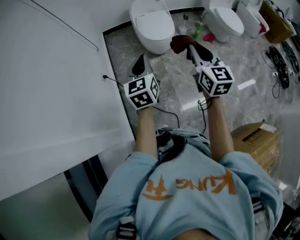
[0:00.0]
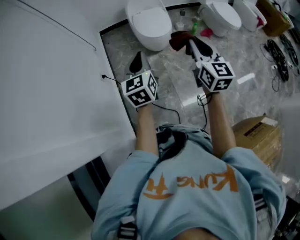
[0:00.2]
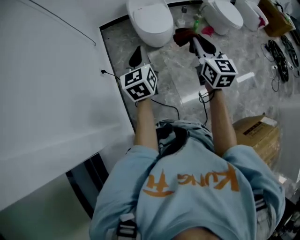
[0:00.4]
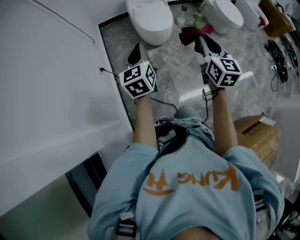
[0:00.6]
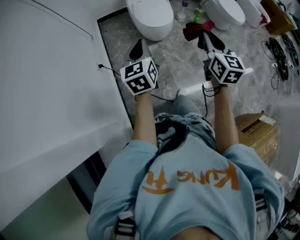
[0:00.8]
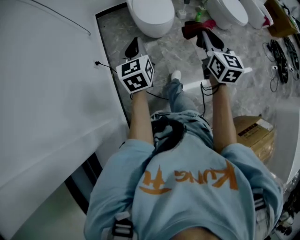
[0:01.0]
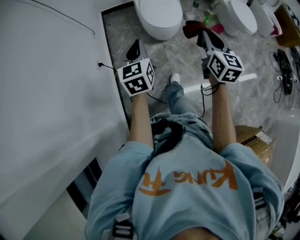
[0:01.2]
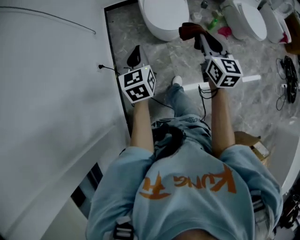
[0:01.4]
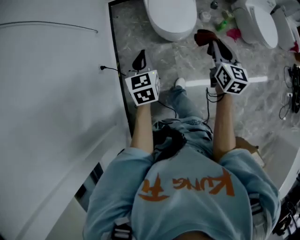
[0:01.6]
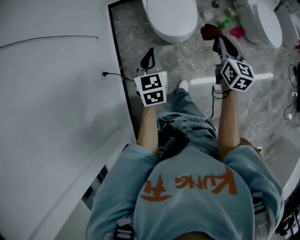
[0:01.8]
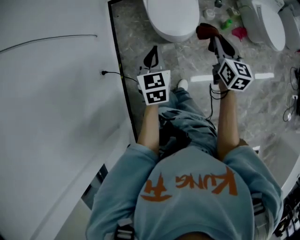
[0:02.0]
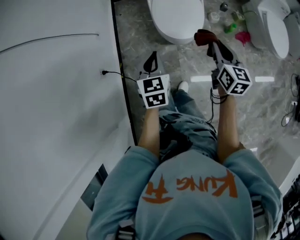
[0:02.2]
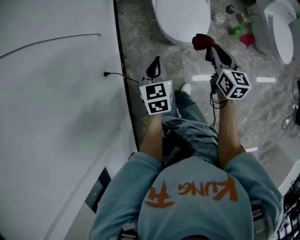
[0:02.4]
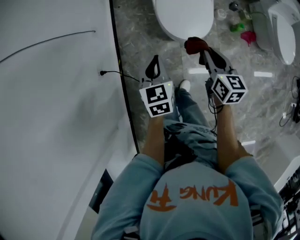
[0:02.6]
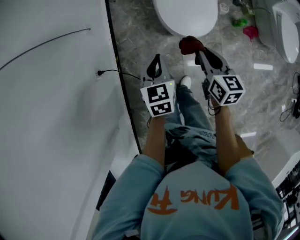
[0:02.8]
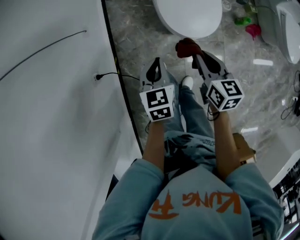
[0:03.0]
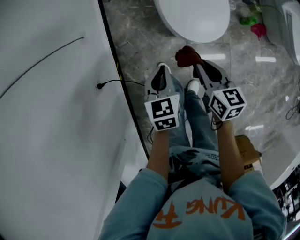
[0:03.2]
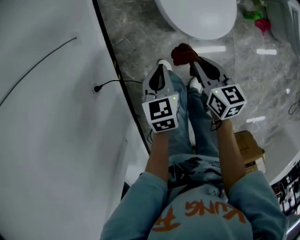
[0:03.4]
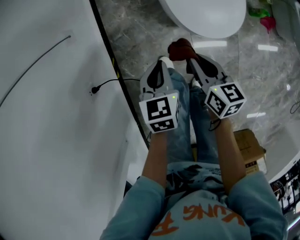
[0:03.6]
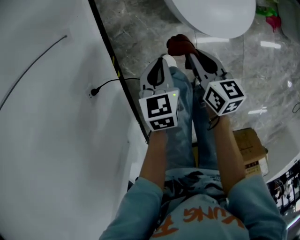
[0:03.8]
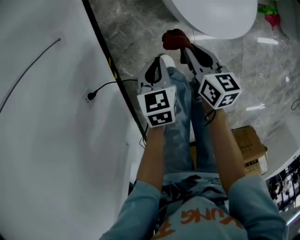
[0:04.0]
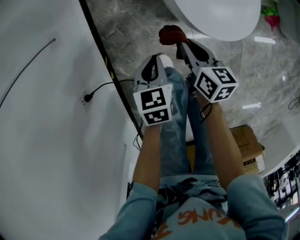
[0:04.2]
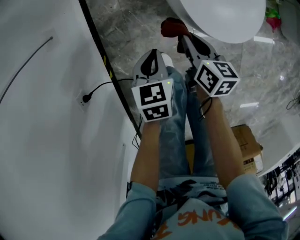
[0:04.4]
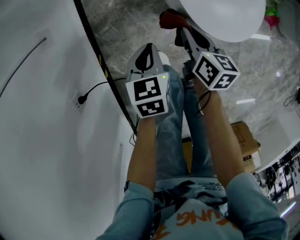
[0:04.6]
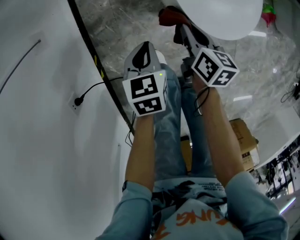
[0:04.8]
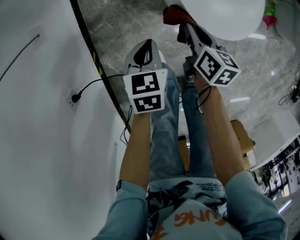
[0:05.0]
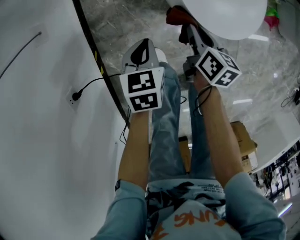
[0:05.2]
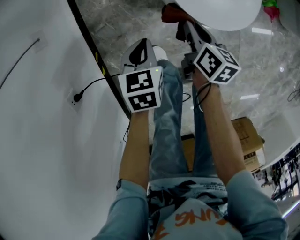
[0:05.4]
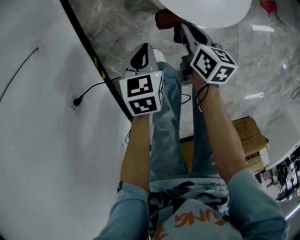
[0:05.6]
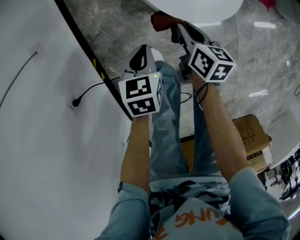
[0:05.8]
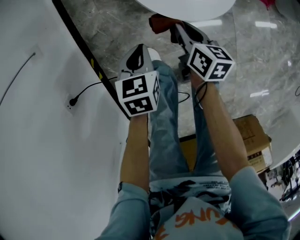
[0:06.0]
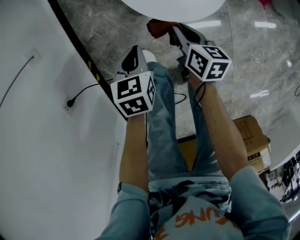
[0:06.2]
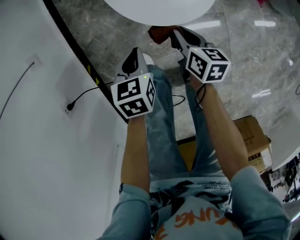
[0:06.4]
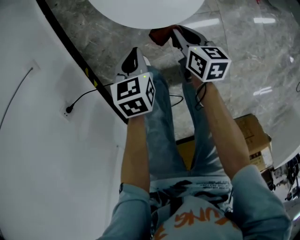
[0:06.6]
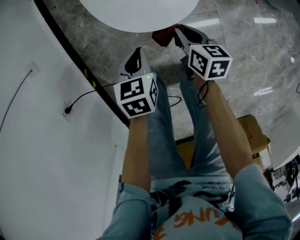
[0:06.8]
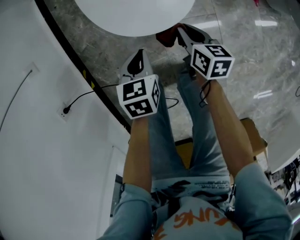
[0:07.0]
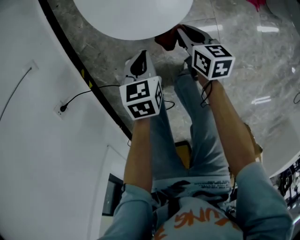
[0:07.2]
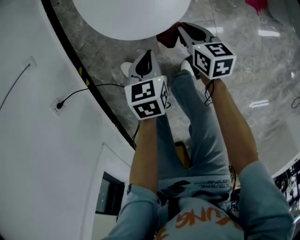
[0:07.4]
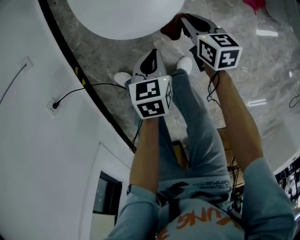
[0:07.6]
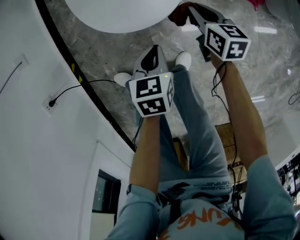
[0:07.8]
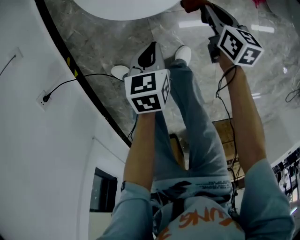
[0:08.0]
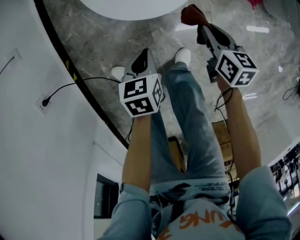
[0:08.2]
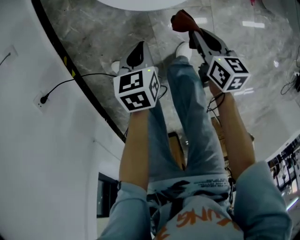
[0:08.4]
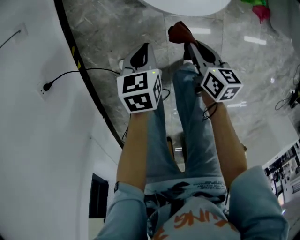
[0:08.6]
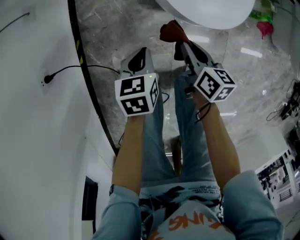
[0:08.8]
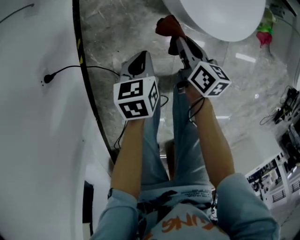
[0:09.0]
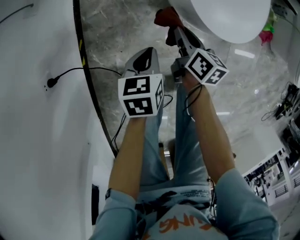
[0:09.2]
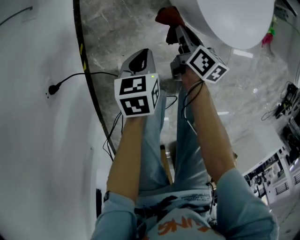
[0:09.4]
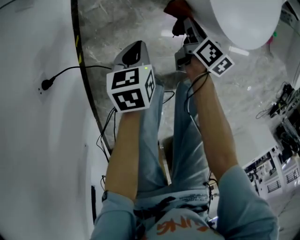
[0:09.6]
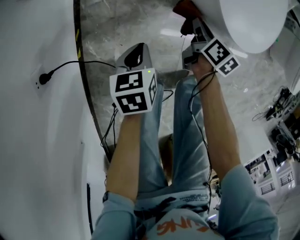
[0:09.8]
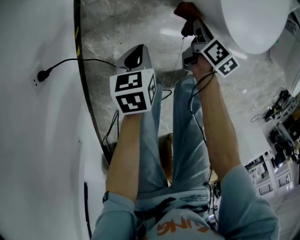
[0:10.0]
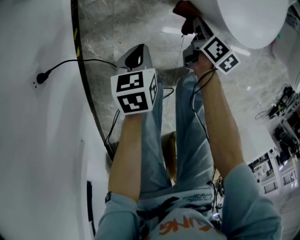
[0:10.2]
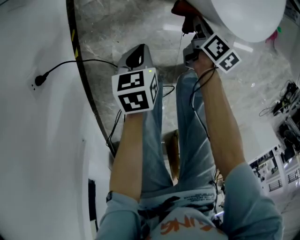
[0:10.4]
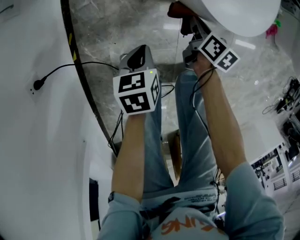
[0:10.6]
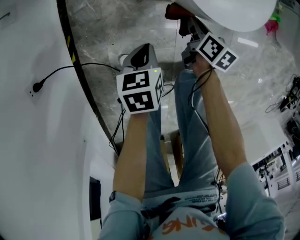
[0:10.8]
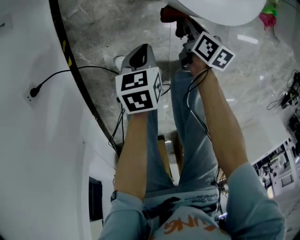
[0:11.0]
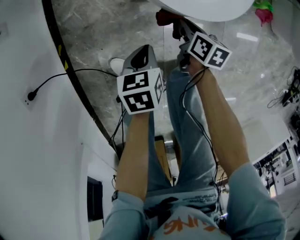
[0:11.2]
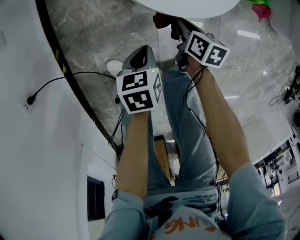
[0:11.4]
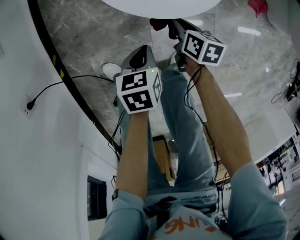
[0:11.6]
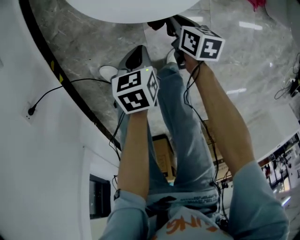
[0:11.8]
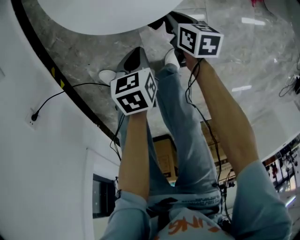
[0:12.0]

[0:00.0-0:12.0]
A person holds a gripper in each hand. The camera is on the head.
0:00.0 to 0:01.6: Both grippers move forward and downward, some 30 cm. The left gripper turns by some 20 degrees.
0:01.6 to 0:03.0: The right gripper moves downward, forward and to the left, some 30 cm, and changes its angle by roughly 30 degrees; the left gripper is displaced downward and forward by some 25 cm.
0:03.0 to 0:04.4: The grippers both shift downward by some 25 cm.
0:04.4 to 0:06.0: Both grippers travel together to the right, about 10 cm.
0:06.0 to 0:07.6: Both grippers travel together to the right, roughly 20 cm. The right gripper turns by roughly 20 degrees.
0:07.6 to 0:09.0: The two grippers go about 25 cm to the left.
0:09.0 to 0:10.4: Both grippers travel together downward, some 10 cm.
0:10.4 to 0:12.0: Both grippers travel together to the right, some 25 cm.

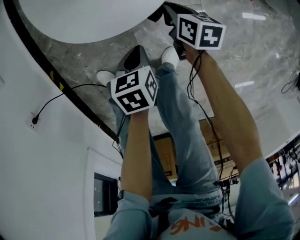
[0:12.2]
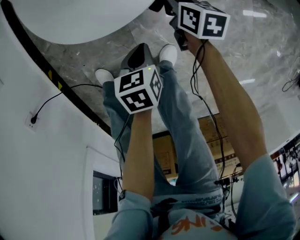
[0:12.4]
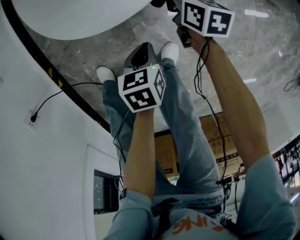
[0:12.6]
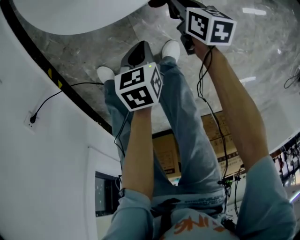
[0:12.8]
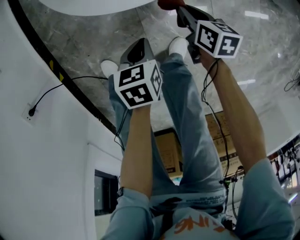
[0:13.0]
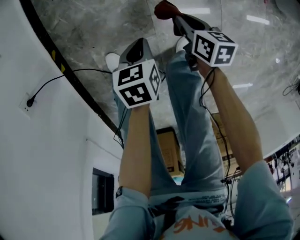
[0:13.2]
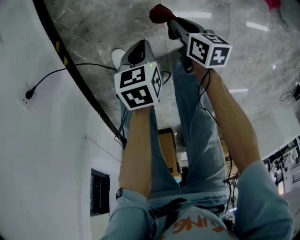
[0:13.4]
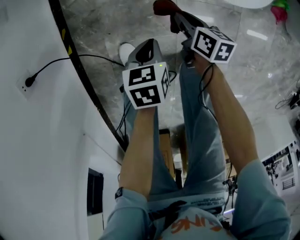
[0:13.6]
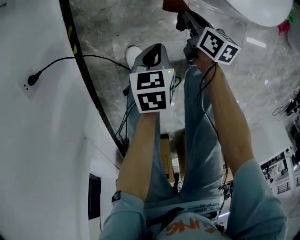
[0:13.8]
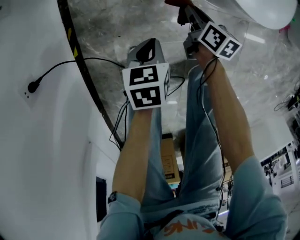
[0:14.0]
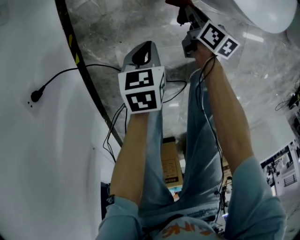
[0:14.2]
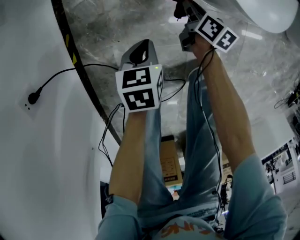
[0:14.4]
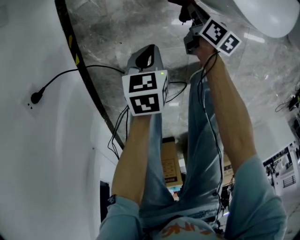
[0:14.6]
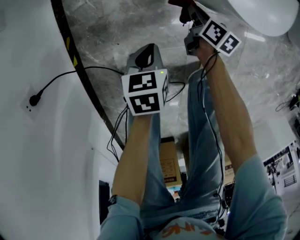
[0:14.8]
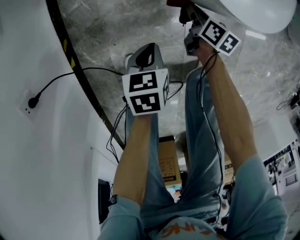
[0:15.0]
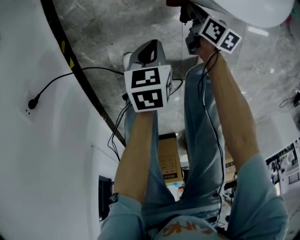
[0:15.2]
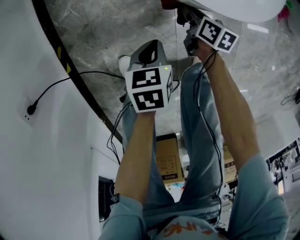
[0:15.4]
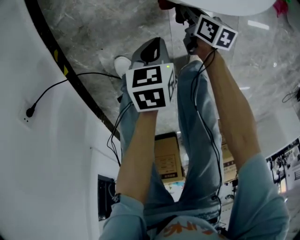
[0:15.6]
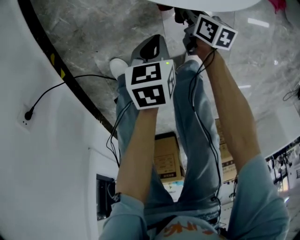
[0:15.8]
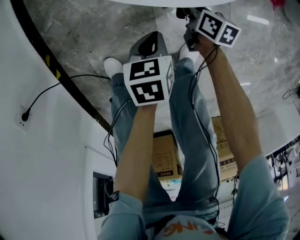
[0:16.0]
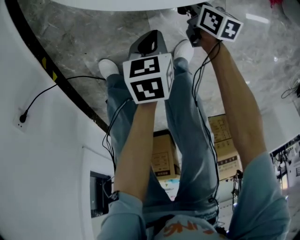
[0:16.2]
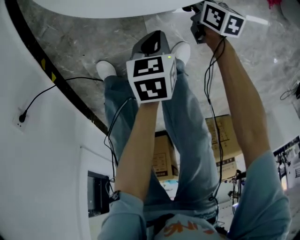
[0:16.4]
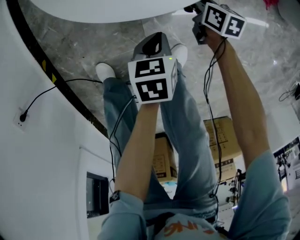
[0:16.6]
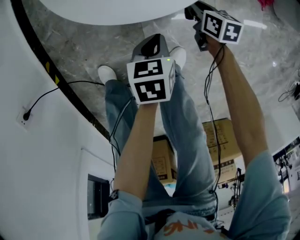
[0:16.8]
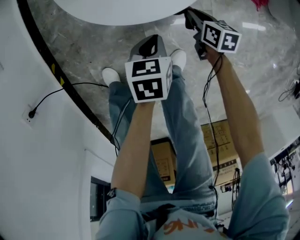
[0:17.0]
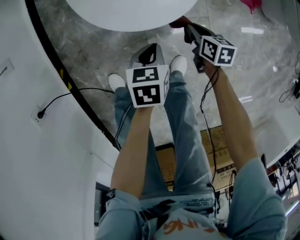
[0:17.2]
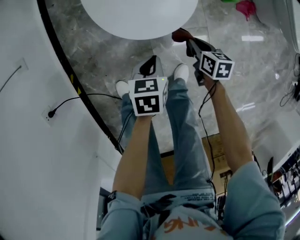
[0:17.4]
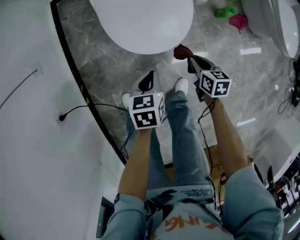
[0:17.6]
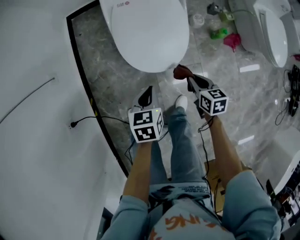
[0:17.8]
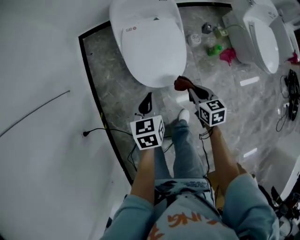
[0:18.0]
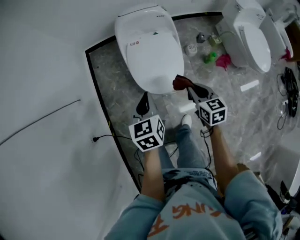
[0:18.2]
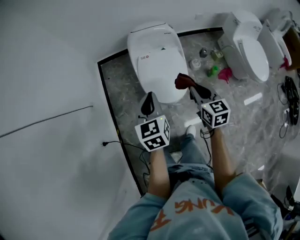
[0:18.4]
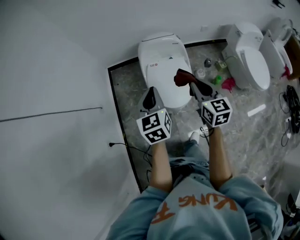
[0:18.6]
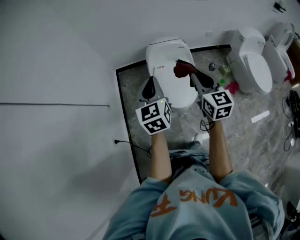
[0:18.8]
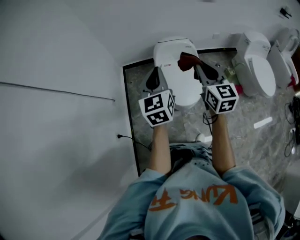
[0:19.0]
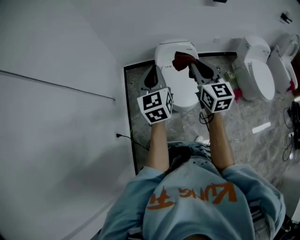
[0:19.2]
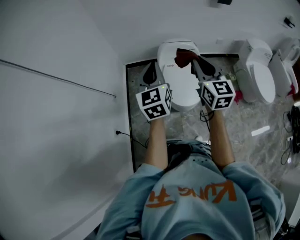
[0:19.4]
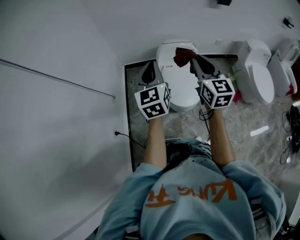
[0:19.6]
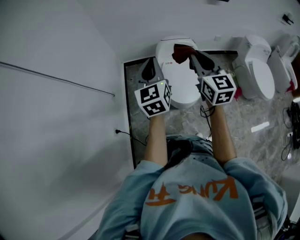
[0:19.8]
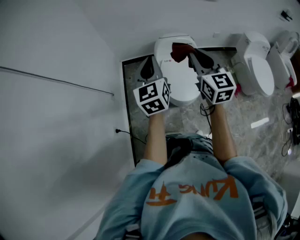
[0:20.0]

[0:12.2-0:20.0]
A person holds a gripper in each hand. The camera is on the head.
0:12.2 to 0:13.8: Both grippers move to the left, some 25 cm.
0:13.8 to 0:15.4: The left gripper goes roughly 10 cm to the right and forward. The right gripper moves to the right and downward, approximately 10 cm.
0:15.4 to 0:16.8: Both grippers move to the right, some 15 cm.
0:16.8 to 0:18.4: The grippers both shift upward by approximately 60 cm. The left gripper angles its fingers upward, by some 30 degrees. Meanwhile the right gripper swivels about 30 degrees.
0:18.4 to 0:20.0: Both grippers travel together upward and to the left, some 25 cm. The left gripper swivels roughly 20 degrees. The right gripper turns by approximately 30 degrees.

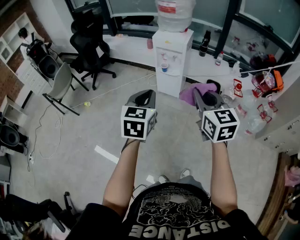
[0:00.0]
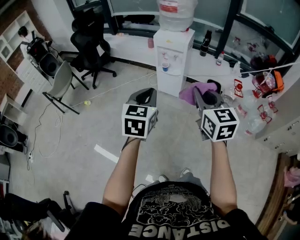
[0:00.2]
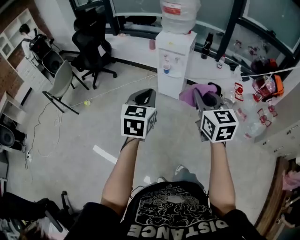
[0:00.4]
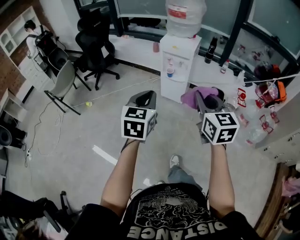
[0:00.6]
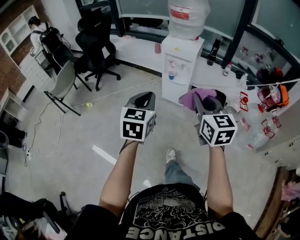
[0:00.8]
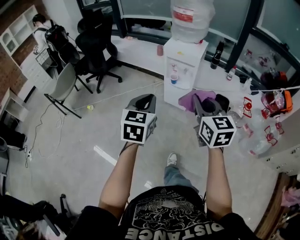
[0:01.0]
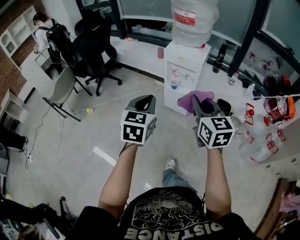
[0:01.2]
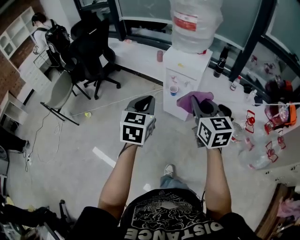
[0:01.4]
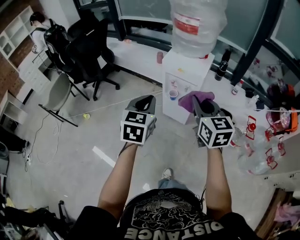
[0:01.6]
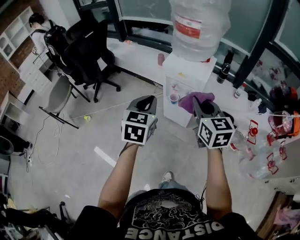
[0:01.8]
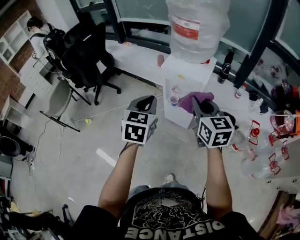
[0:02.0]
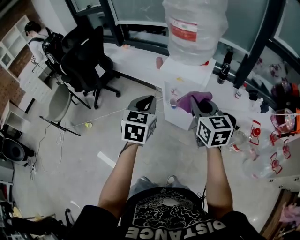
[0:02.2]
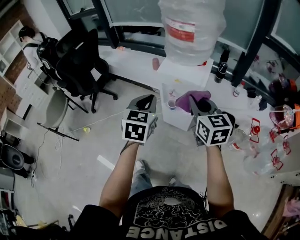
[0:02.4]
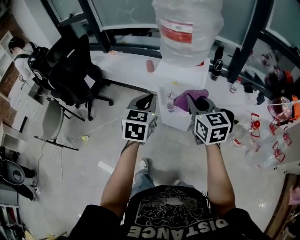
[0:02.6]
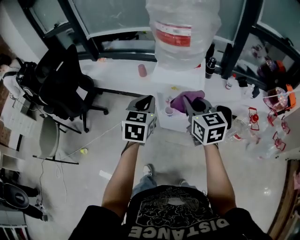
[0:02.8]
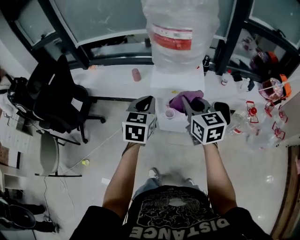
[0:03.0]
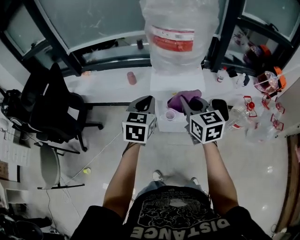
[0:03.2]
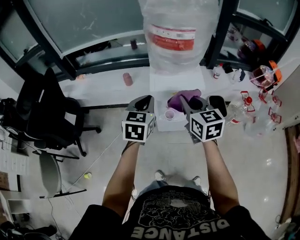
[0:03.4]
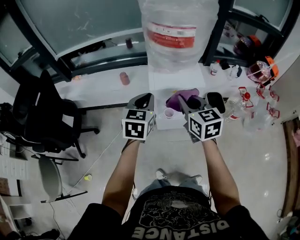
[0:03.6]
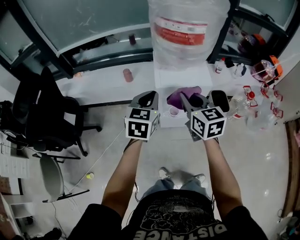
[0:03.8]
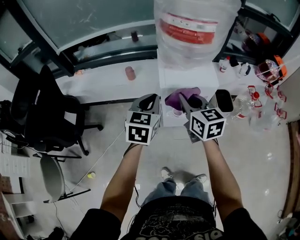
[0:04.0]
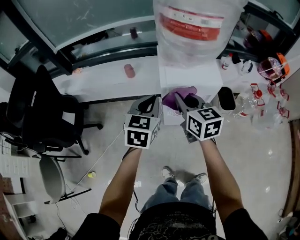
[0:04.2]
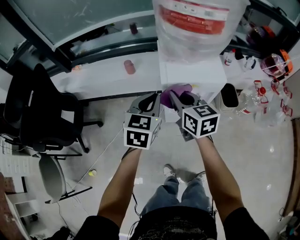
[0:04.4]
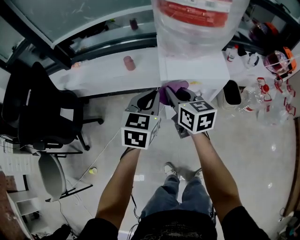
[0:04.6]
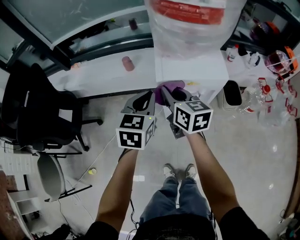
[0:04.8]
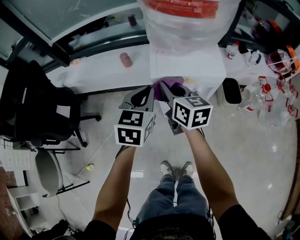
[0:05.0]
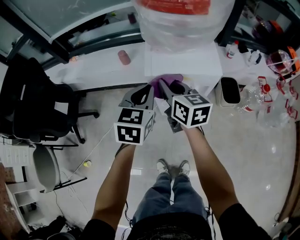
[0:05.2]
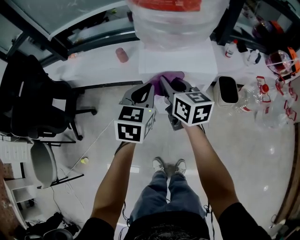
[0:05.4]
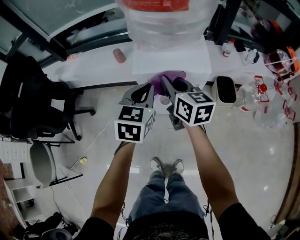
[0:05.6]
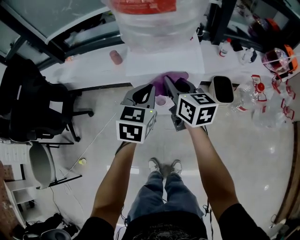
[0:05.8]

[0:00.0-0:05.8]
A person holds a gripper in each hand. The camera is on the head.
0:00.0 to 0:01.4: The two grippers go some 25 cm forward.
0:01.4 to 0:02.8: The grippers both shift forward by roughly 25 cm.
0:02.8 to 0:04.4: The right gripper is displaced to the left, forward and downward by roughly 20 cm. The left gripper travels forward, downward and to the left by approximately 15 cm.
0:04.4 to 0:05.8: The two grippers go approximately 15 cm to the right.
